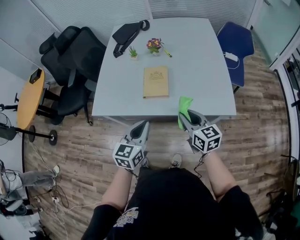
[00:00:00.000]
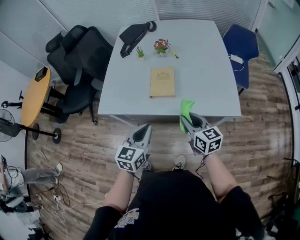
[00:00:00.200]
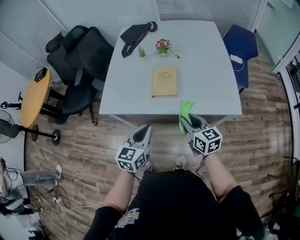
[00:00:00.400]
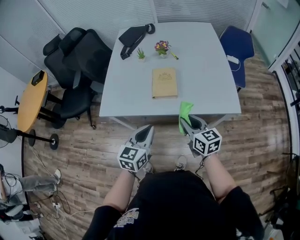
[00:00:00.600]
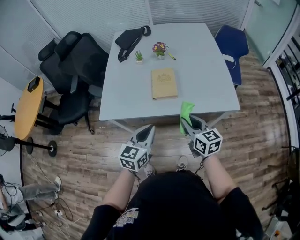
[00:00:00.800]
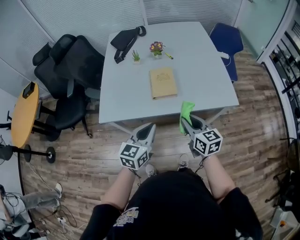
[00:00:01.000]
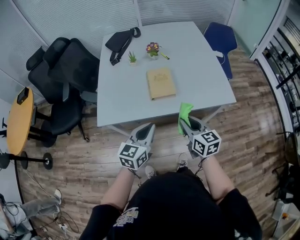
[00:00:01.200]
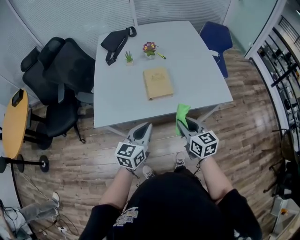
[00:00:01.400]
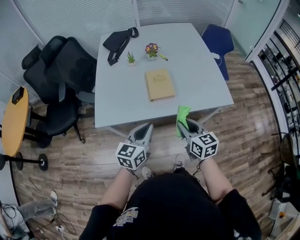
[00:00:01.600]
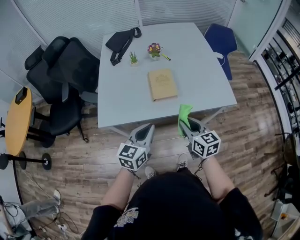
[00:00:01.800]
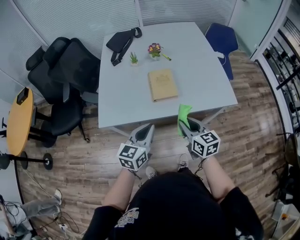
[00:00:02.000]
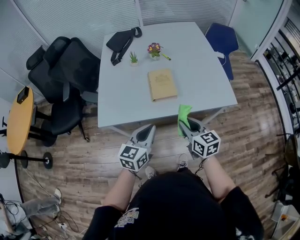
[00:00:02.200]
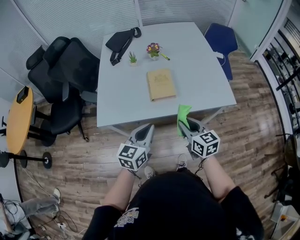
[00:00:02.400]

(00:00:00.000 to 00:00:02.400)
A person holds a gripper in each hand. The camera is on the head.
00:00:00.000 - 00:00:01.200: The grippers both shift to the left by about 10 cm.
00:00:01.200 - 00:00:02.400: The grippers stay close to where they were, moving slightly.

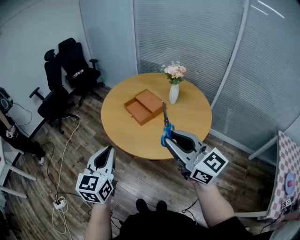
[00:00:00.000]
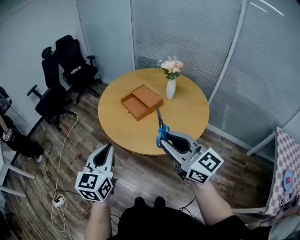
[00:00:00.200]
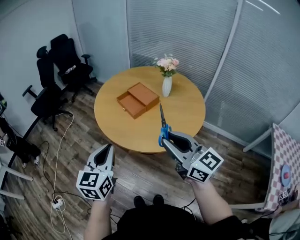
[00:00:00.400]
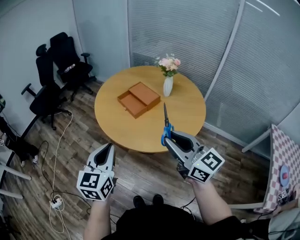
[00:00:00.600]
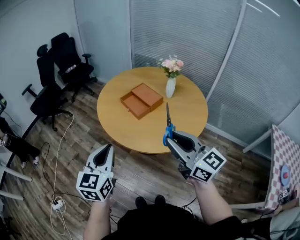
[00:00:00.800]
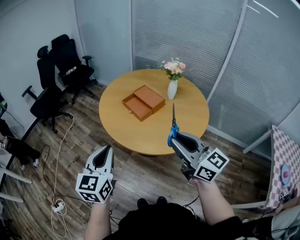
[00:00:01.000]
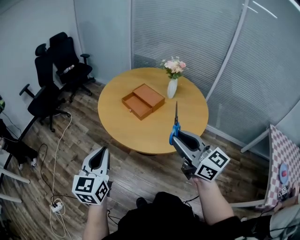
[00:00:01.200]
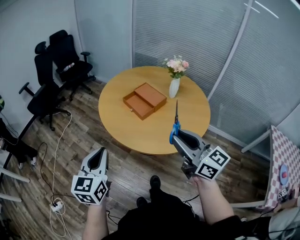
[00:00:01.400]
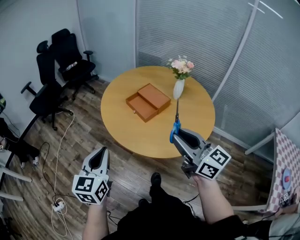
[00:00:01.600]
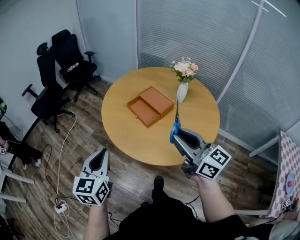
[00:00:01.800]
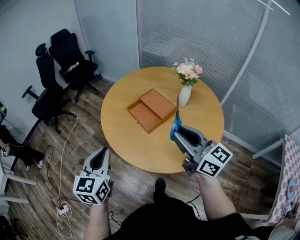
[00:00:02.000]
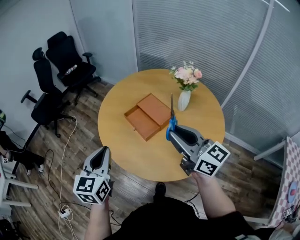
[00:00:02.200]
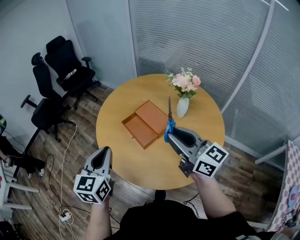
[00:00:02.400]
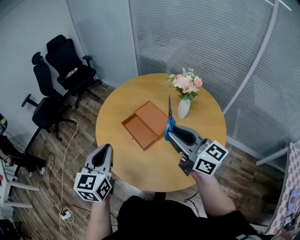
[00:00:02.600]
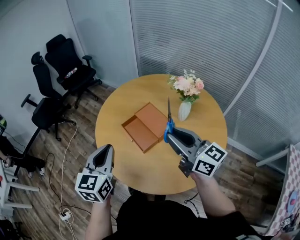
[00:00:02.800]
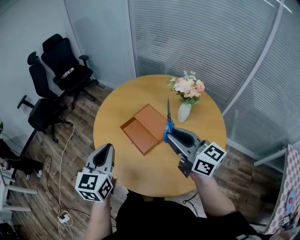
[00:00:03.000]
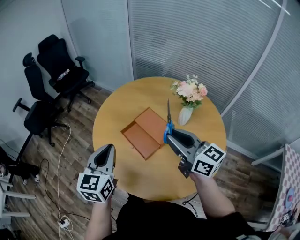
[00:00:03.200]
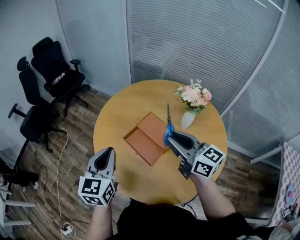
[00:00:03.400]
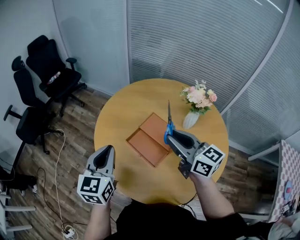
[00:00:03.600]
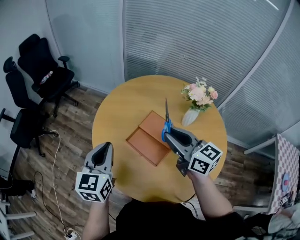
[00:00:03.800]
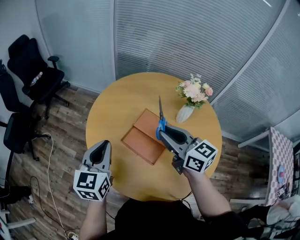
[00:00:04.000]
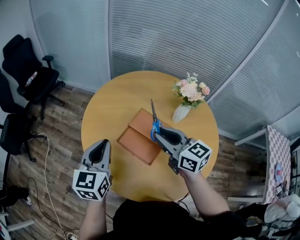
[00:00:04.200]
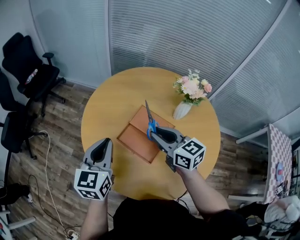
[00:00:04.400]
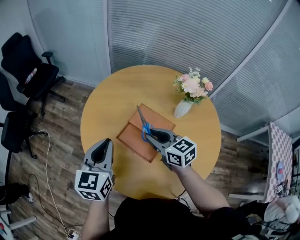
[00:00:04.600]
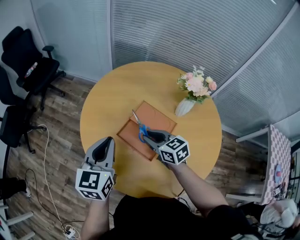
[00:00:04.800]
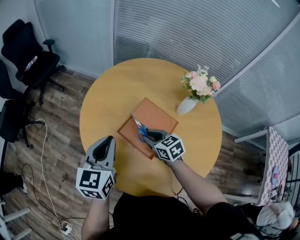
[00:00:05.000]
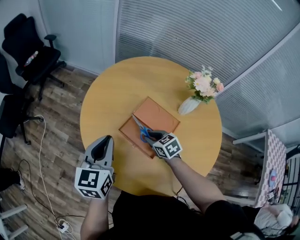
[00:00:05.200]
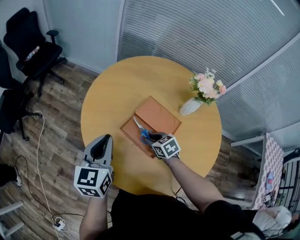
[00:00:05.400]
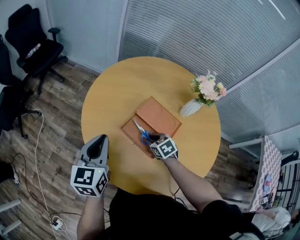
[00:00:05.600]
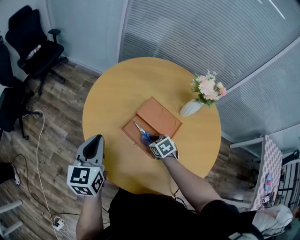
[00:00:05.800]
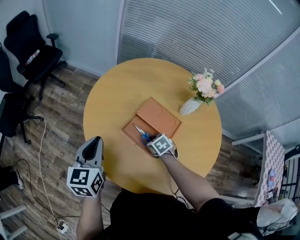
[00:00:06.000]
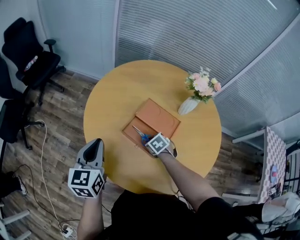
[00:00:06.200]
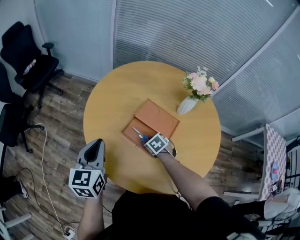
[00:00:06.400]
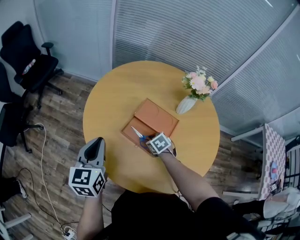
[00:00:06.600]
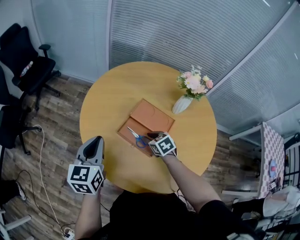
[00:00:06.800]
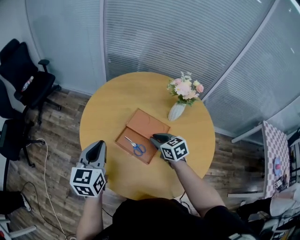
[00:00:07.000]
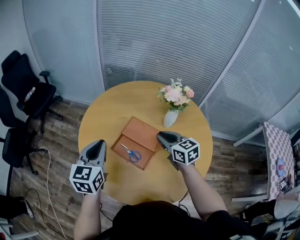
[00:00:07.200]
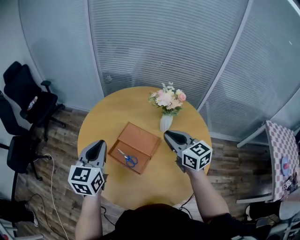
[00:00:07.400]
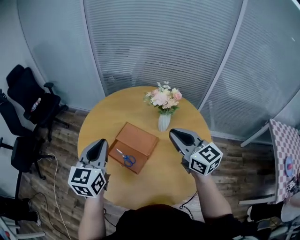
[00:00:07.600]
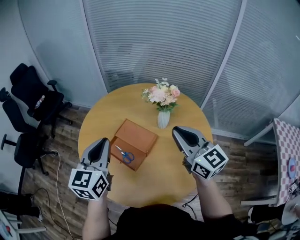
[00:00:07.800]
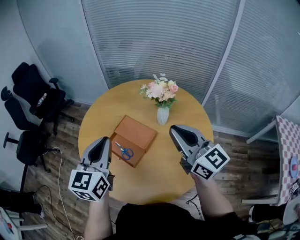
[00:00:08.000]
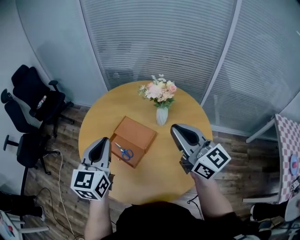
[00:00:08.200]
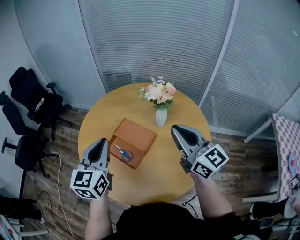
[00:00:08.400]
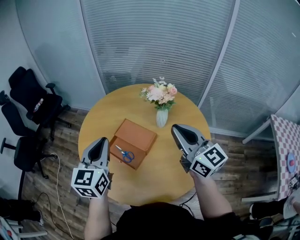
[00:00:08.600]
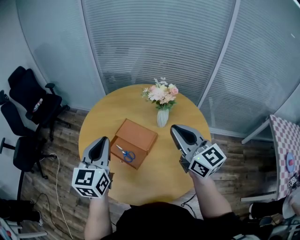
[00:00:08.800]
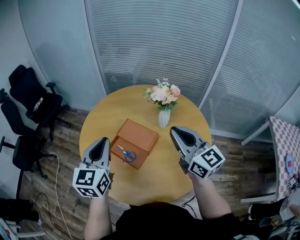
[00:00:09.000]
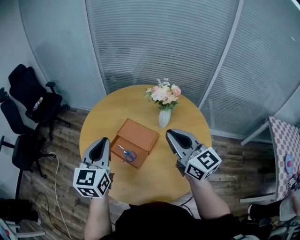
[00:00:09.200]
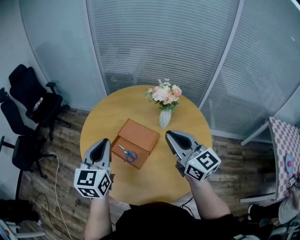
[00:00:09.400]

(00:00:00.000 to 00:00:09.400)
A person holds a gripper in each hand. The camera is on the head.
00:00:00.000 - 00:00:01.600: The left gripper shifts about 10 cm to the left and forward, while the right gripper shifts approximately 5 cm forward.
00:00:01.600 - 00:00:03.200: The left gripper moves forward and to the right, some 30 cm; the right gripper heads forward, covering some 30 cm.
00:00:03.200 - 00:00:04.800: The right gripper travels downward, forward and to the left by about 25 cm, and angles its fingers downward, by some 30 degrees. Meanwhile the left gripper goes about 15 cm forward and downward.
00:00:04.800 - 00:00:06.200: The left gripper goes approximately 10 cm to the left; the right gripper goes some 15 cm downward, and tips its fingers downward by roughly 40 degrees.
00:00:06.200 - 00:00:07.800: The left gripper ends up approximately 25 cm from where it was. Meanwhile the right gripper shifts roughly 40 cm upward, and tilts its fingers about 70 degrees upward.
00:00:07.800 - 00:00:09.400: The right gripper shifts some 5 cm to the left.

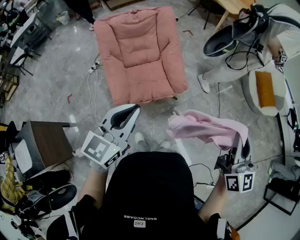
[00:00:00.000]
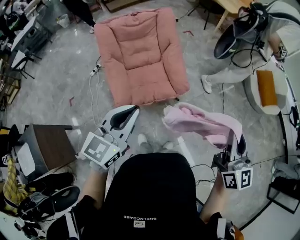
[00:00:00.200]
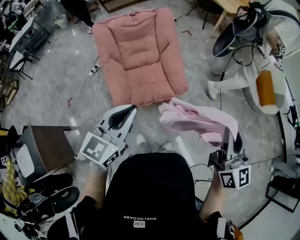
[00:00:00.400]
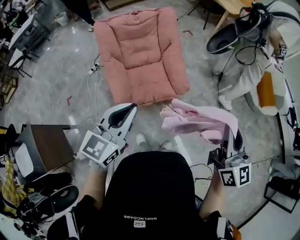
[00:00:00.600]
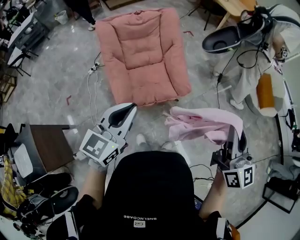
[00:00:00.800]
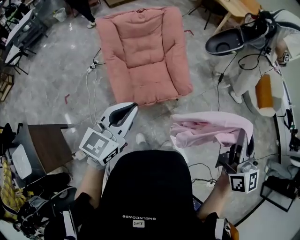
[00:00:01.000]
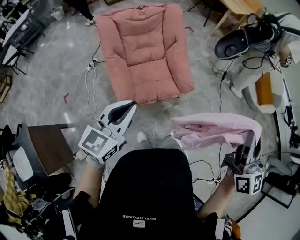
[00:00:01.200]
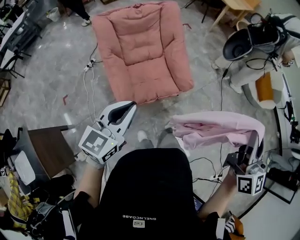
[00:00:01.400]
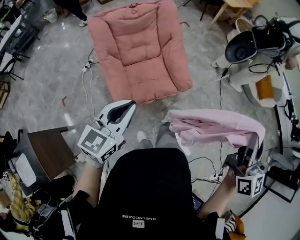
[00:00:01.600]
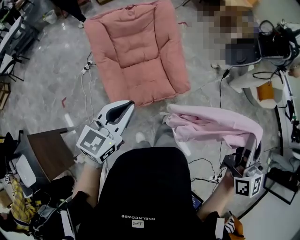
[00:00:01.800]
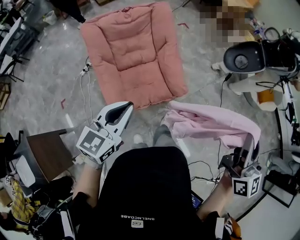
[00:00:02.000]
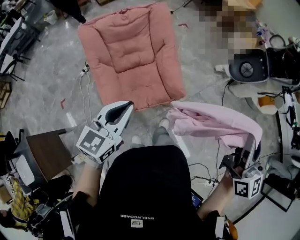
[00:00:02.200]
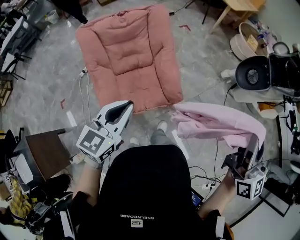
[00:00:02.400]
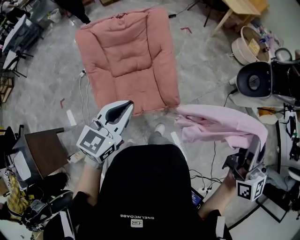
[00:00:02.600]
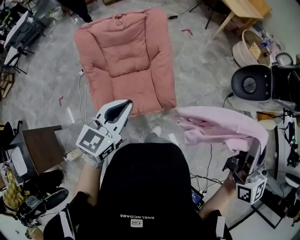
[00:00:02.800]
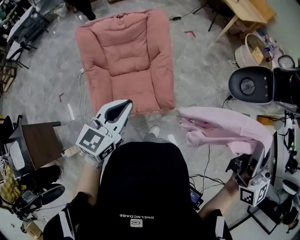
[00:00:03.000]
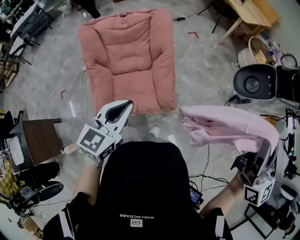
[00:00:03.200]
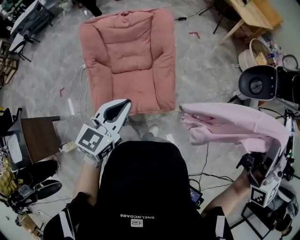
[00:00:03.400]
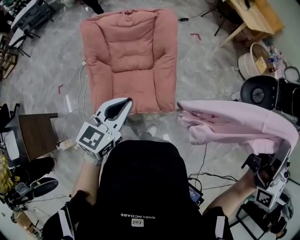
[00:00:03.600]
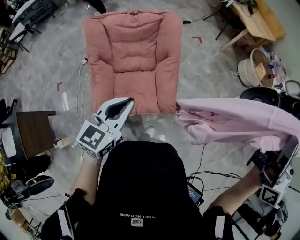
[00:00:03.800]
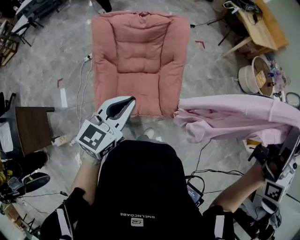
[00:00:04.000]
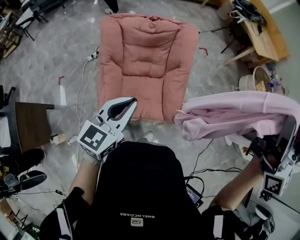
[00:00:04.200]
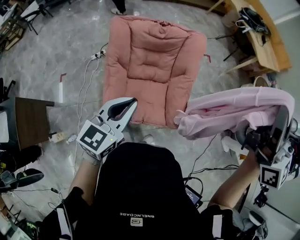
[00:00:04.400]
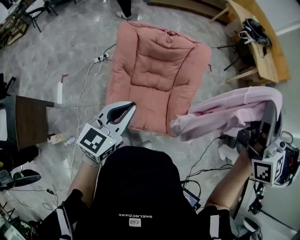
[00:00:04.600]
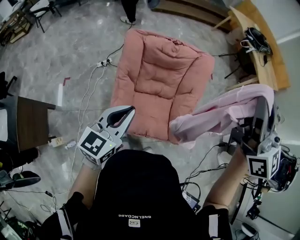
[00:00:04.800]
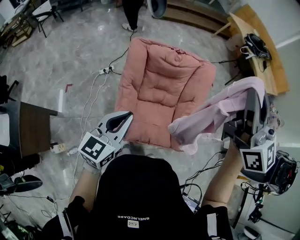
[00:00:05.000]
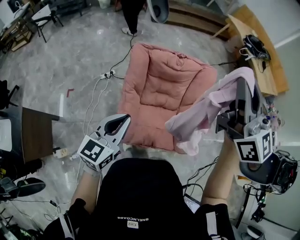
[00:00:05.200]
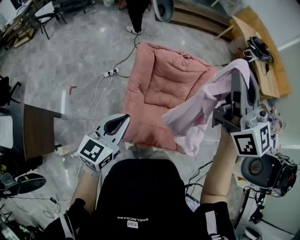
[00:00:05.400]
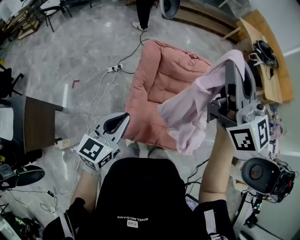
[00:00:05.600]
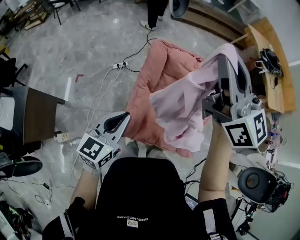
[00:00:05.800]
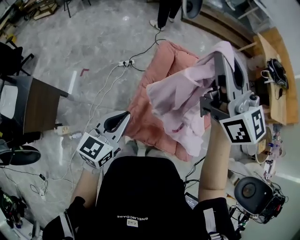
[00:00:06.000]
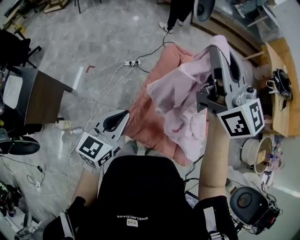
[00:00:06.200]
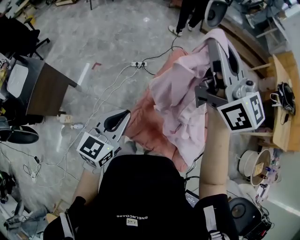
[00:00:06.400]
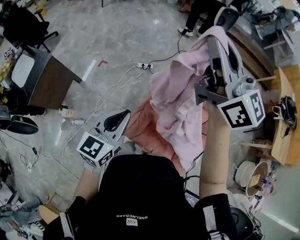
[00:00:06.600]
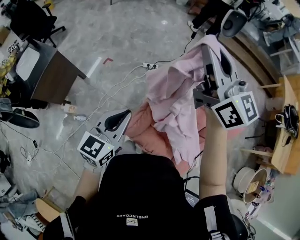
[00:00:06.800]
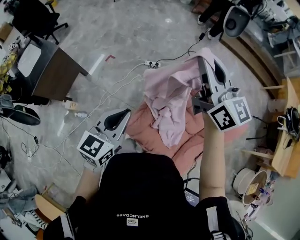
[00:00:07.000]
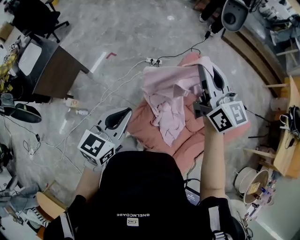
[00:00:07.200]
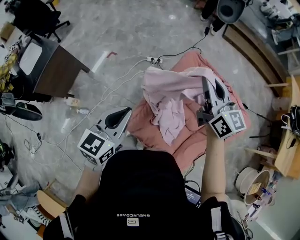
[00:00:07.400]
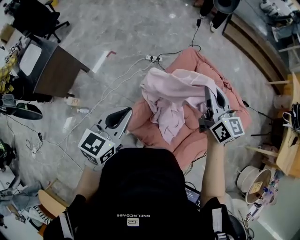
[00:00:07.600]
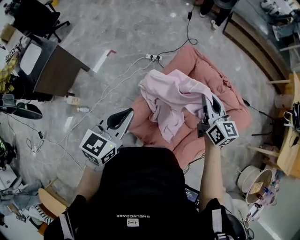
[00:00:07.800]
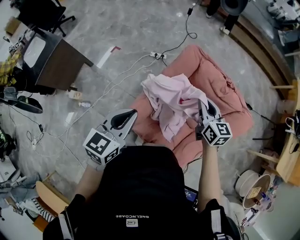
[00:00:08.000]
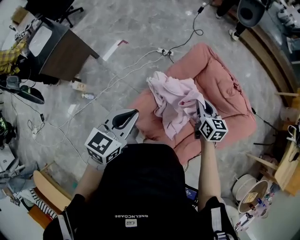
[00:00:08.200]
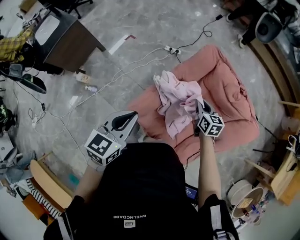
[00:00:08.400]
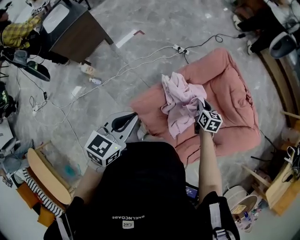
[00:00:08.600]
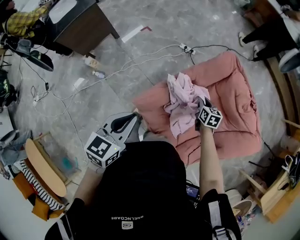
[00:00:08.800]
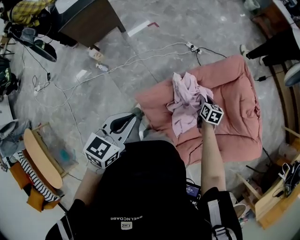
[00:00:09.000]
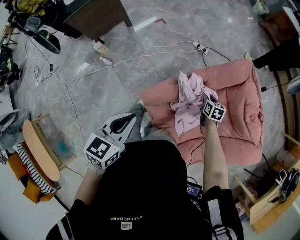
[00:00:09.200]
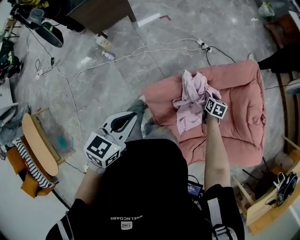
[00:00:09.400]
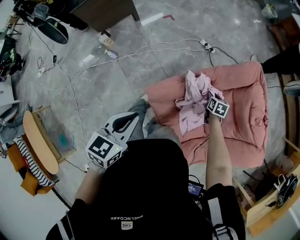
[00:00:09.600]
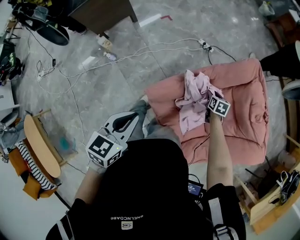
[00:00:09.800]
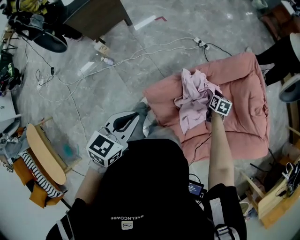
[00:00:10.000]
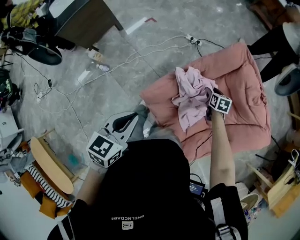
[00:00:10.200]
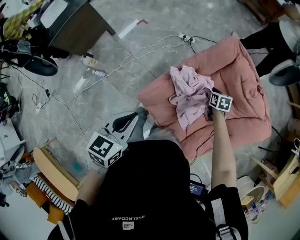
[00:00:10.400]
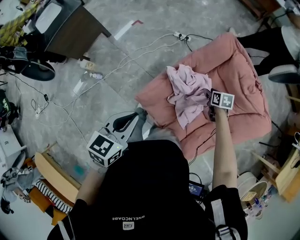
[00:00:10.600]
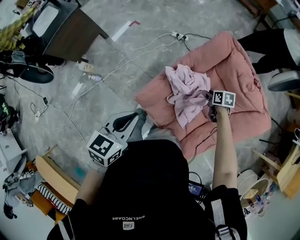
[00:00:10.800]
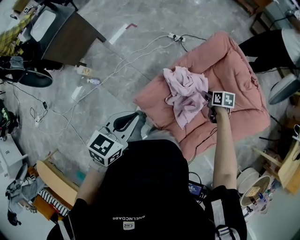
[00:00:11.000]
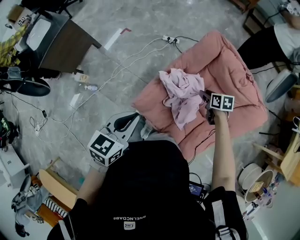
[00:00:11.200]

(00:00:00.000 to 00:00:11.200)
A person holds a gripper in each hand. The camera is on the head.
00:00:00.000 - 00:00:01.600: The left gripper heads to the left, downward and forward, covering approximately 15 cm, while the right gripper goes some 10 cm to the left.
00:00:01.600 - 00:00:03.200: Both grippers travel together forward and to the right, some 25 cm. The right gripper rotates some 20 degrees.
00:00:03.200 - 00:00:04.800: The right gripper travels to the left and forward by approximately 50 cm, and turns by roughly 30 degrees, while the left gripper heads to the left, covering roughly 30 cm.
00:00:04.800 - 00:00:06.400: The right gripper shifts by about 35 cm, and swivels roughly 40 degrees, while the left gripper moves roughly 15 cm, and changes its angle by roughly 30 degrees.
00:00:06.400 - 00:00:08.000: The right gripper is displaced downward and to the right by some 40 cm, and angles its fingers downward, by roughly 40 degrees. The left gripper shifts approximately 10 cm to the right and downward.
00:00:08.000 - 00:00:09.600: The right gripper heads downward, covering some 30 cm, and tilts its fingers roughly 40 degrees downward, while the left gripper shifts some 20 cm to the left, backward and downward, and changes its angle by approximately 30 degrees.
00:00:09.600 - 00:00:11.200: The left gripper ends up approximately 5 cm from where it was, and changes its angle by roughly 30 degrees, while the right gripper moves upward, backward and to the right, some 15 cm, and opens.
